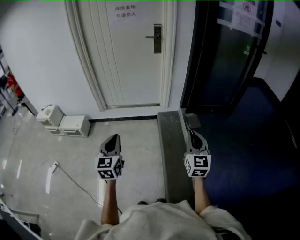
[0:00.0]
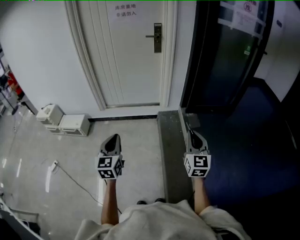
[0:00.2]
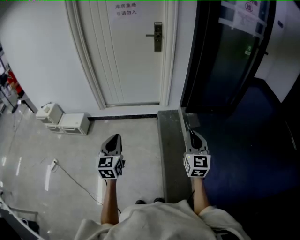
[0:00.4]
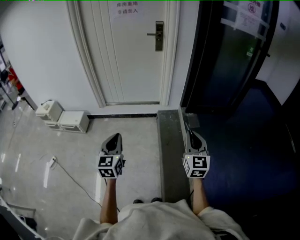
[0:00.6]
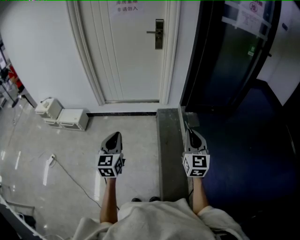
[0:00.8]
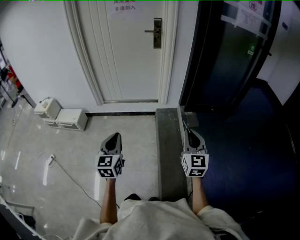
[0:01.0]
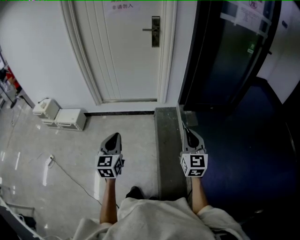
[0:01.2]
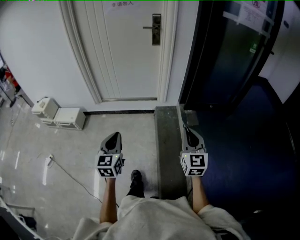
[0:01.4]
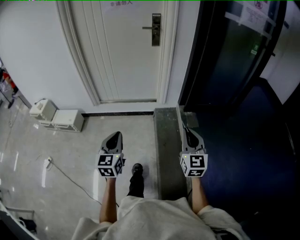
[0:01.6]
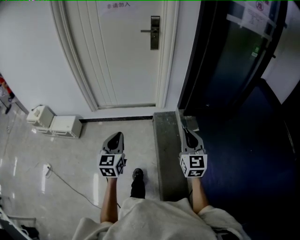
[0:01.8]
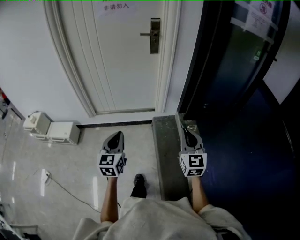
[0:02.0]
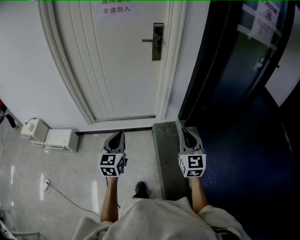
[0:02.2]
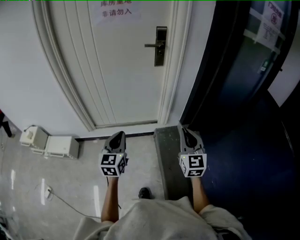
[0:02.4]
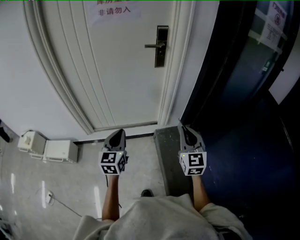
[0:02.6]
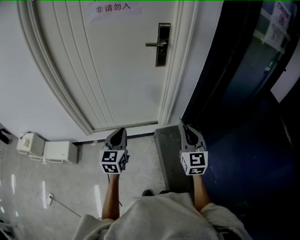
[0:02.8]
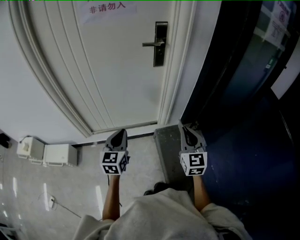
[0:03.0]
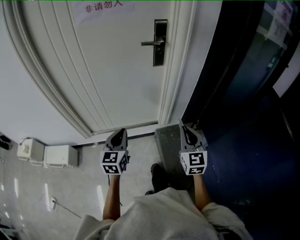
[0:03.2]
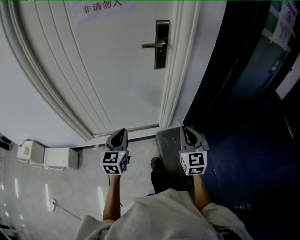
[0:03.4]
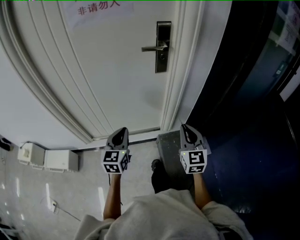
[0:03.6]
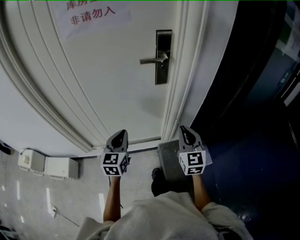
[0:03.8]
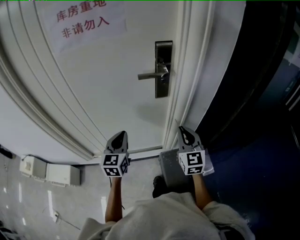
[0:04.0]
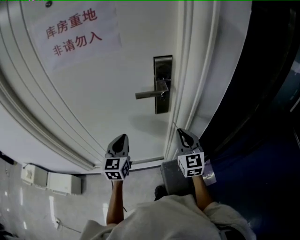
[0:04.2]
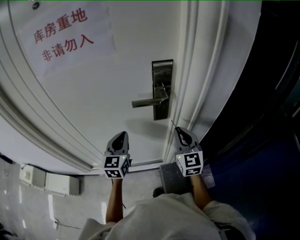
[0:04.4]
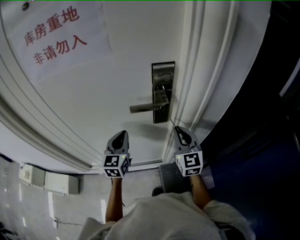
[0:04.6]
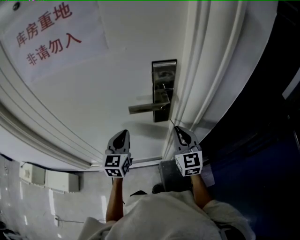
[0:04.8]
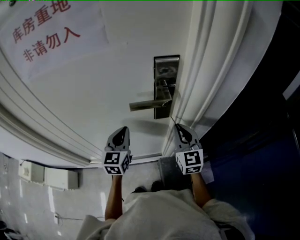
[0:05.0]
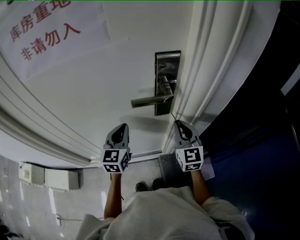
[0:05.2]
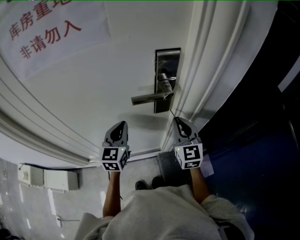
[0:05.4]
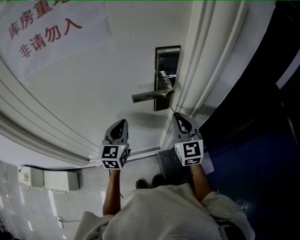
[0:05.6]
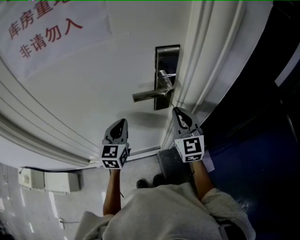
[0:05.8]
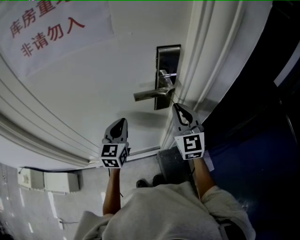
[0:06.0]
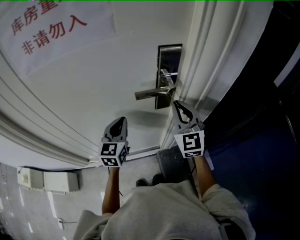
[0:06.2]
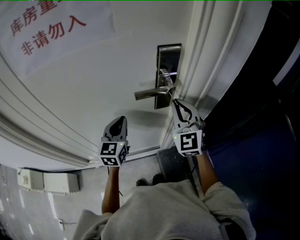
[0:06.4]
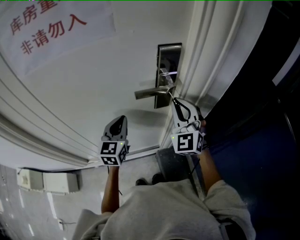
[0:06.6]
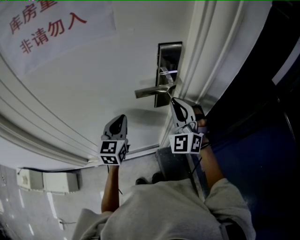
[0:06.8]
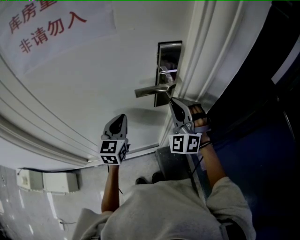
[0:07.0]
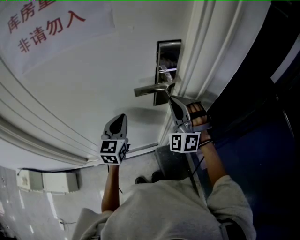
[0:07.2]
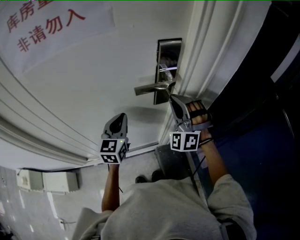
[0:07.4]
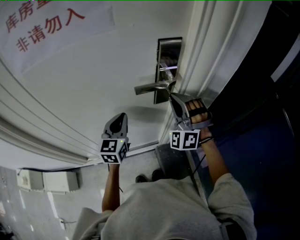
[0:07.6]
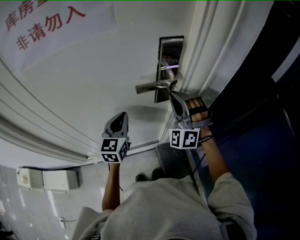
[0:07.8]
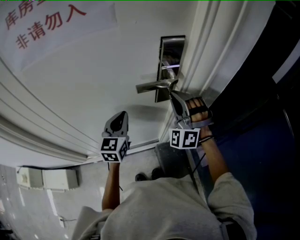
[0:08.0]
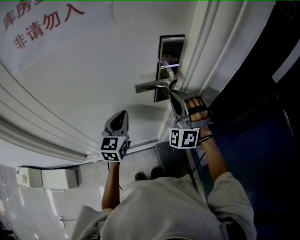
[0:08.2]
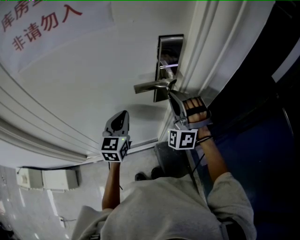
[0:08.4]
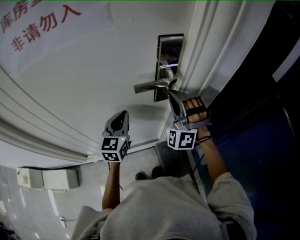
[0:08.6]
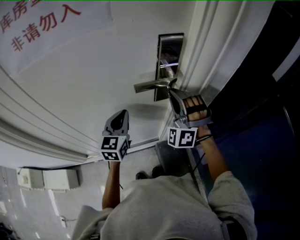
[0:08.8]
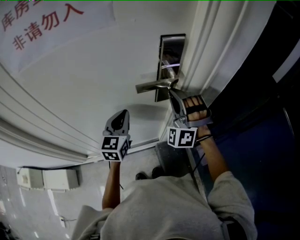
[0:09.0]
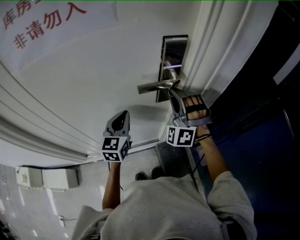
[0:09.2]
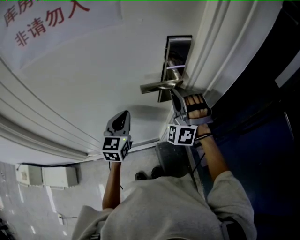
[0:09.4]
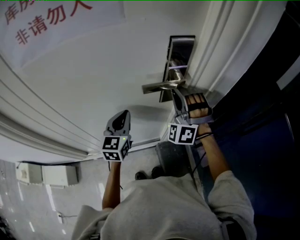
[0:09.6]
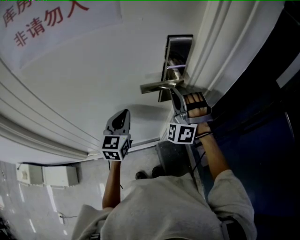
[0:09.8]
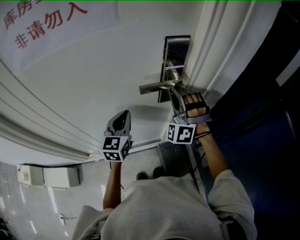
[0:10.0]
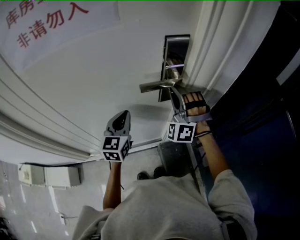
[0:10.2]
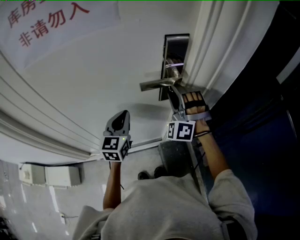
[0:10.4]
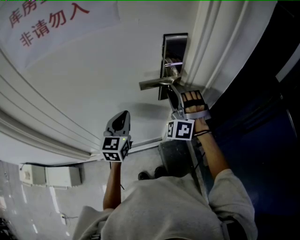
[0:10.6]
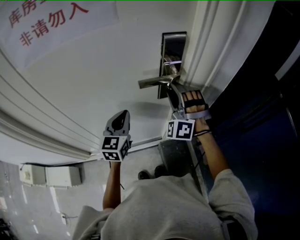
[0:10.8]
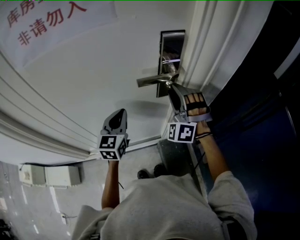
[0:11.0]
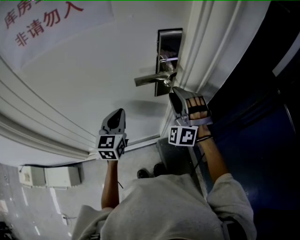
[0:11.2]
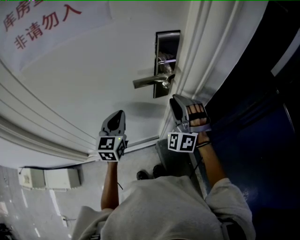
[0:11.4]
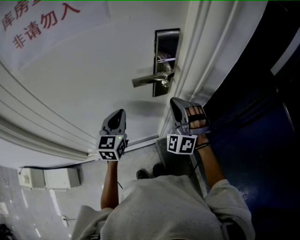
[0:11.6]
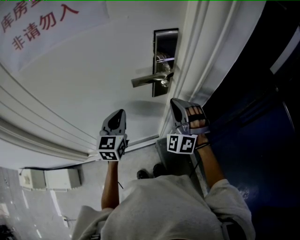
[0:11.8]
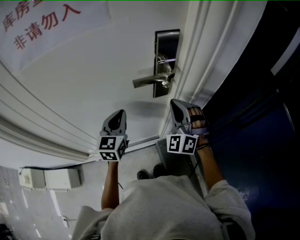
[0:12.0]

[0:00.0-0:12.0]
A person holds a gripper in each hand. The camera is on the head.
0:00.0 to 0:01.6: The left gripper goes some 10 cm forward and to the right, while the right gripper goes approximately 10 cm forward.
0:01.6 to 0:03.0: The pair of grippers is taken forward, approximately 40 cm.
0:03.0 to 0:04.4: Both grippers are carried forward, roughly 40 cm.
0:04.4 to 0:06.0: The right gripper shifts by some 5 cm.
0:06.0 to 0:07.6: The right gripper rolls counterclockwise, seen from behind, by approximately 60 degrees.
0:07.6 to 0:09.0: The grippers move only a little.
0:09.0 to 0:10.4: The right gripper opens up.
0:10.4 to 0:12.0: The right gripper goes roughly 5 cm backward, and closes its fingers.

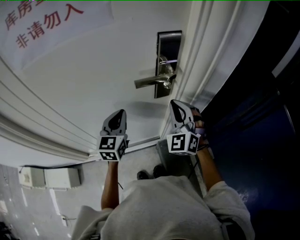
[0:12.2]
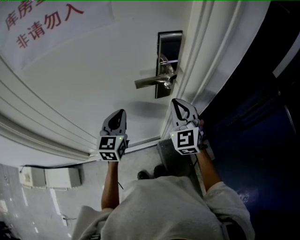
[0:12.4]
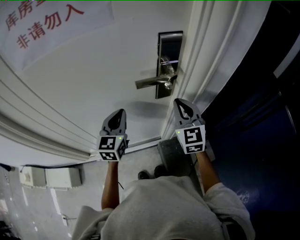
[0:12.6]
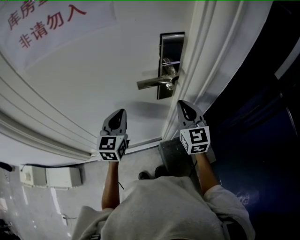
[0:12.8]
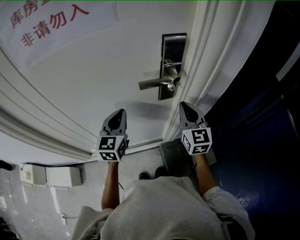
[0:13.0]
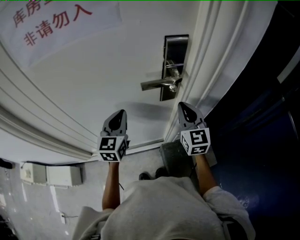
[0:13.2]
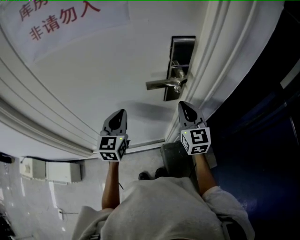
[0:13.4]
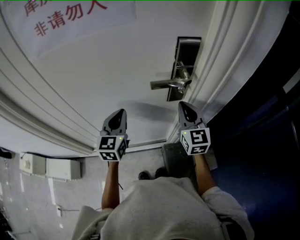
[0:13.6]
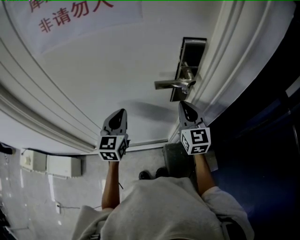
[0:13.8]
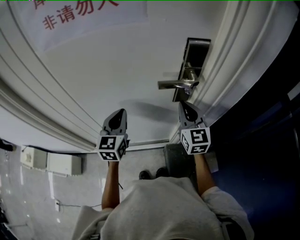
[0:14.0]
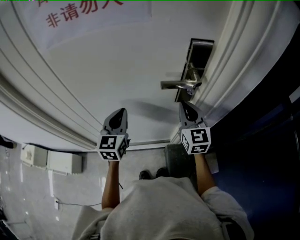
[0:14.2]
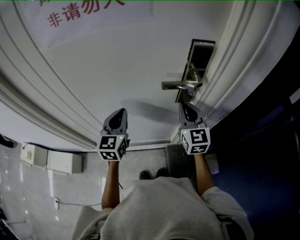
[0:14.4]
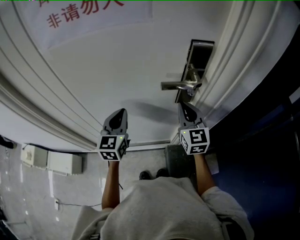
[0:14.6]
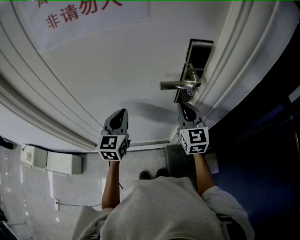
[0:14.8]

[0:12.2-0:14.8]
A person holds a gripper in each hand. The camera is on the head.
0:12.2 to 0:13.4: The right gripper rotates around the line of its fingers by approximately 40 degrees, clockwise from behind.
0:13.4 to 0:14.8: The grippers move only a little.

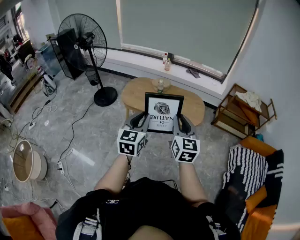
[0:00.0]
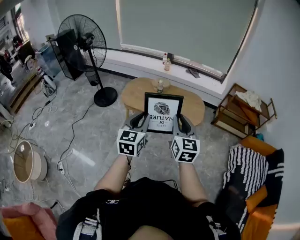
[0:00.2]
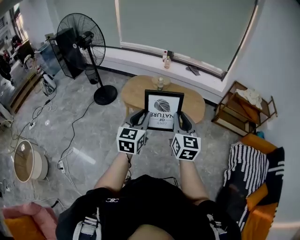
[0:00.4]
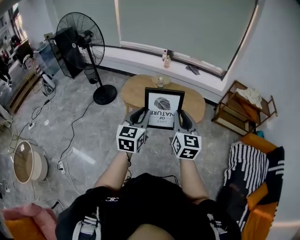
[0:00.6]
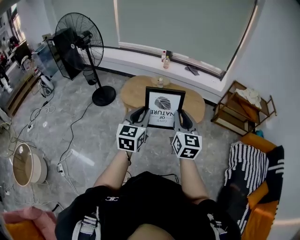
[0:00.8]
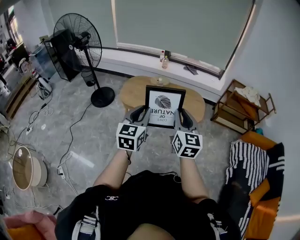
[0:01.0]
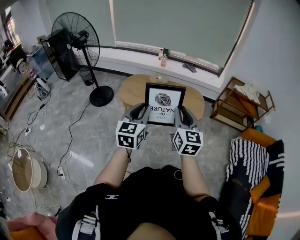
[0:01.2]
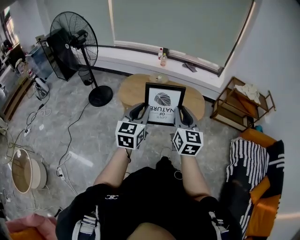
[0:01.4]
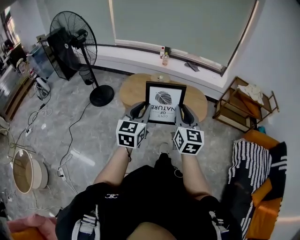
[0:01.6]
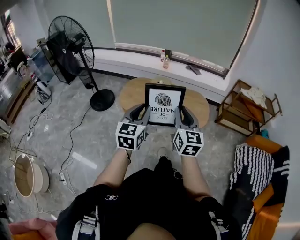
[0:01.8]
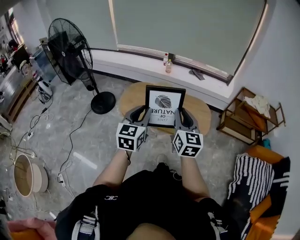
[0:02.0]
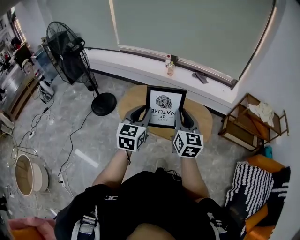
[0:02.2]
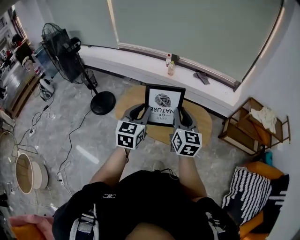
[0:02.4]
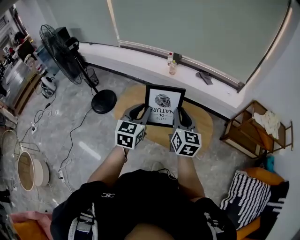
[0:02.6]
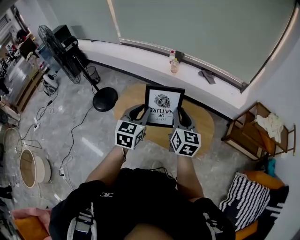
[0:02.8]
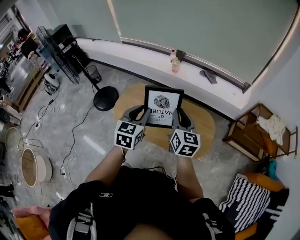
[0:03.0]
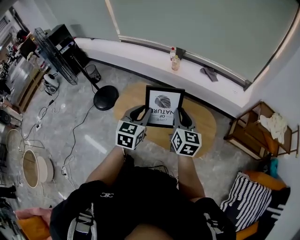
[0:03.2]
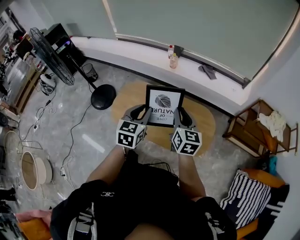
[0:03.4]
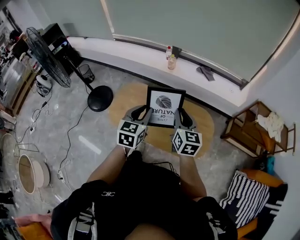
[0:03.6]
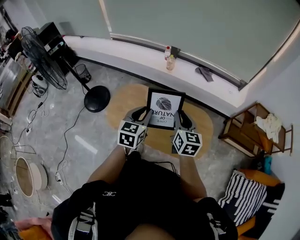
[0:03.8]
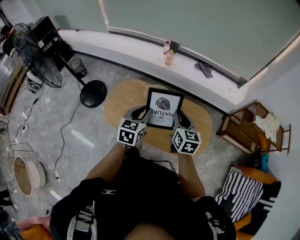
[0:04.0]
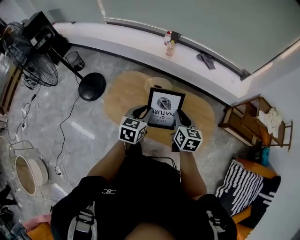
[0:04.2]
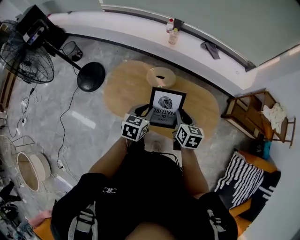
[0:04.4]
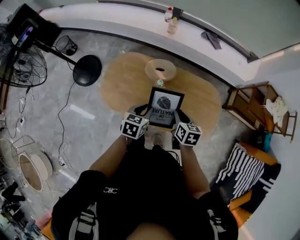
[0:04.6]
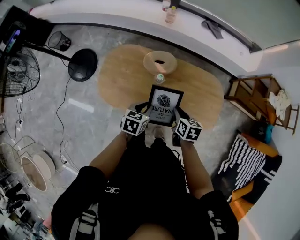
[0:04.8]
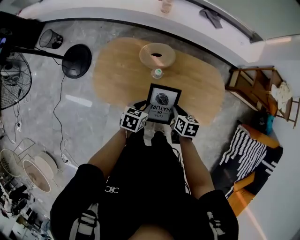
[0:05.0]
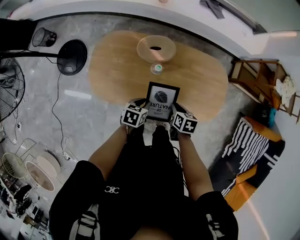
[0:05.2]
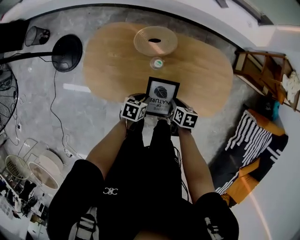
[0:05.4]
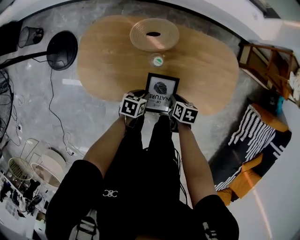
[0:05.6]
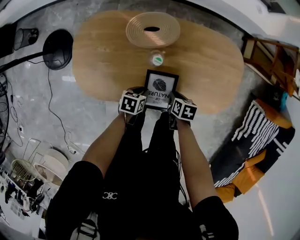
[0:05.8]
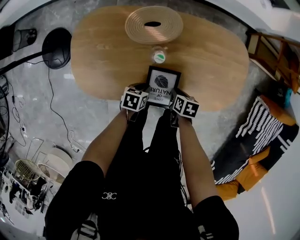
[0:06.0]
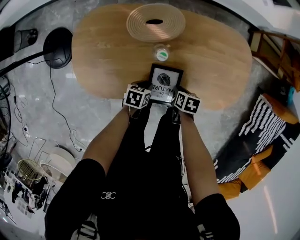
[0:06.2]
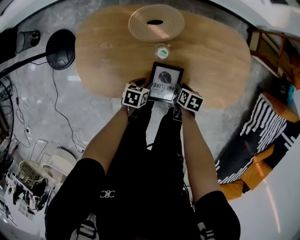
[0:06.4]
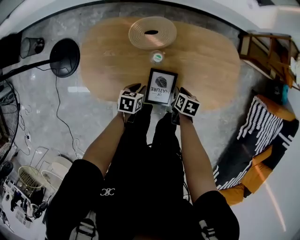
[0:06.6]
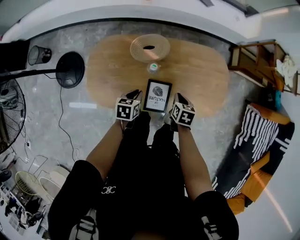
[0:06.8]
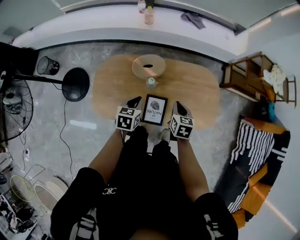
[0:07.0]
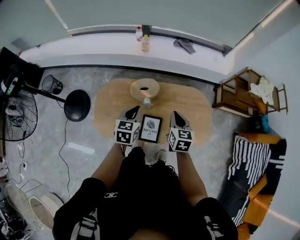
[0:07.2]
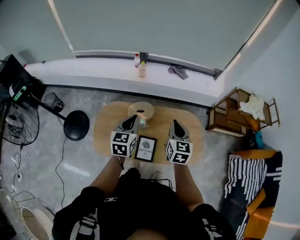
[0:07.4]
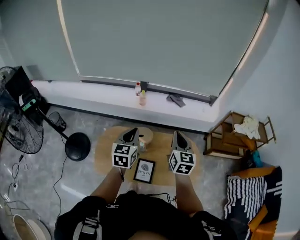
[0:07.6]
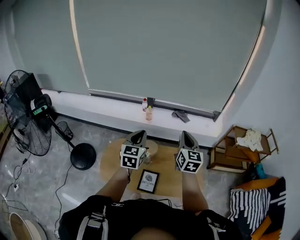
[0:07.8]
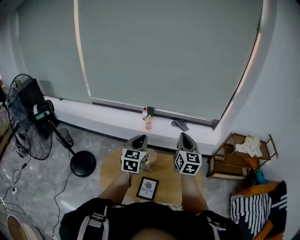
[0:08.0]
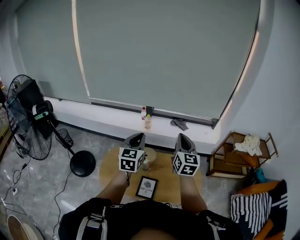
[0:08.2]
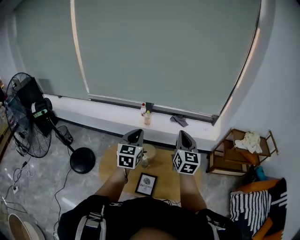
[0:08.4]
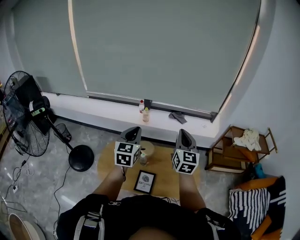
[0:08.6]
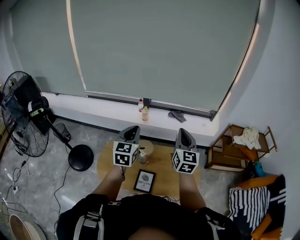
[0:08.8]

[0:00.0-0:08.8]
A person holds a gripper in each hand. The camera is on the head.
0:00.0 to 0:01.4: The left gripper shifts some 10 cm to the left and forward, while the right gripper shifts some 5 cm to the left.
0:01.4 to 0:03.0: The two grippers travel together, forward, approximately 60 cm.
0:03.0 to 0:04.4: The two grippers go some 25 cm downward, forward and to the left. The right gripper swivels some 30 degrees. Meanwhile the left gripper turns by roughly 30 degrees.
0:04.4 to 0:05.8: Both grippers travel together downward, roughly 50 cm. The right gripper points its fingers some 30 degrees further downward. The left gripper changes its angle by roughly 40 degrees.
0:05.8 to 0:07.4: Both grippers move upward, some 60 cm. The right gripper points its fingers roughly 50 degrees further upward, while the left gripper tips its fingers upward by roughly 40 degrees.
0:07.4 to 0:08.8: The two grippers go roughly 15 cm upward. The right gripper changes its angle by about 20 degrees.
